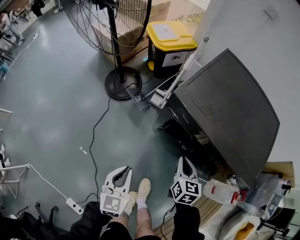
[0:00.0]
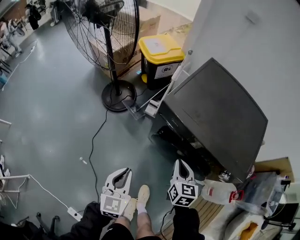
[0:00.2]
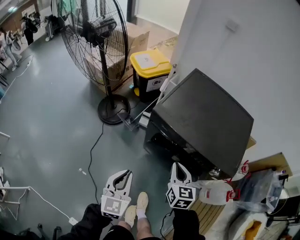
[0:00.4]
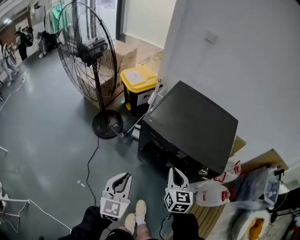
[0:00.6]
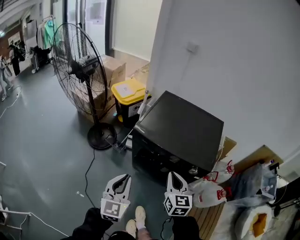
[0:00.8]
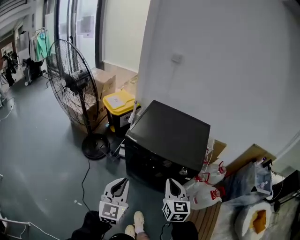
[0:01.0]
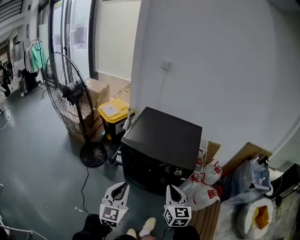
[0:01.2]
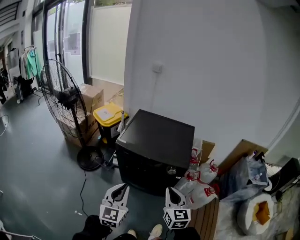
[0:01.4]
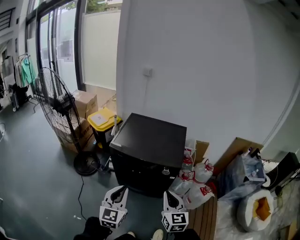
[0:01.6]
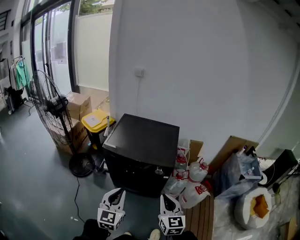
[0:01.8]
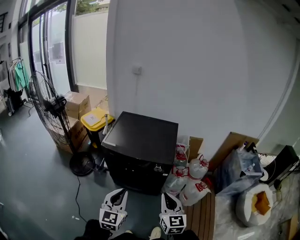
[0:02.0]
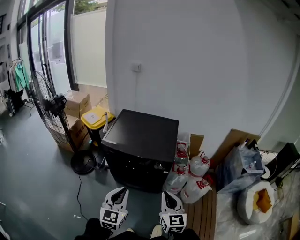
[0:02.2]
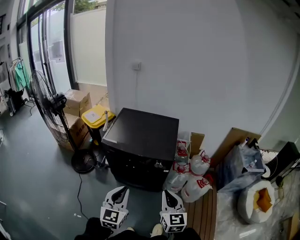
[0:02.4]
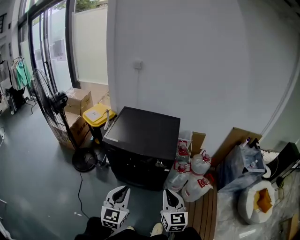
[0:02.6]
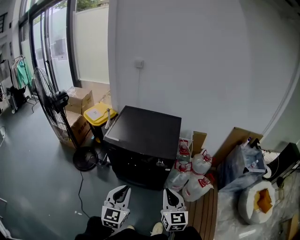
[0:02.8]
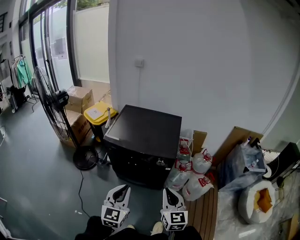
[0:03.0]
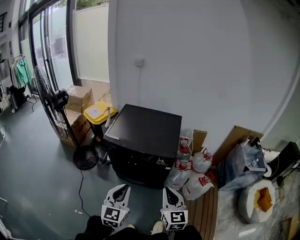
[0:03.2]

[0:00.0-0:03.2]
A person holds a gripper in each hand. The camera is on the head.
0:00.0 to 0:01.6: The right gripper shifts some 50 cm upward, backward and to the right, and swivels approximately 30 degrees. The left gripper travels upward, to the right and backward by approximately 50 cm, and rotates some 30 degrees.
0:01.6 to 0:03.2: The left gripper moves to the right, approximately 5 cm; the right gripper moves roughly 5 cm.

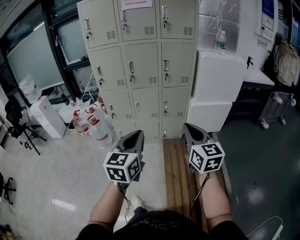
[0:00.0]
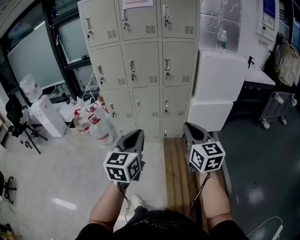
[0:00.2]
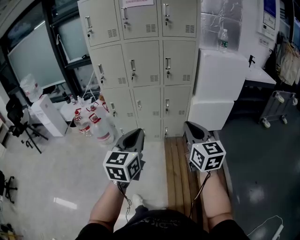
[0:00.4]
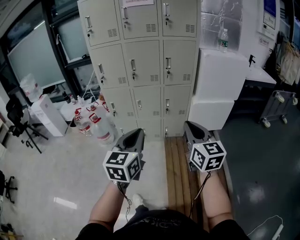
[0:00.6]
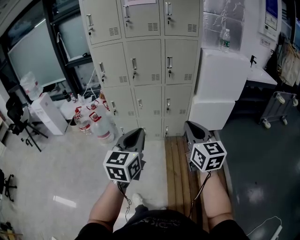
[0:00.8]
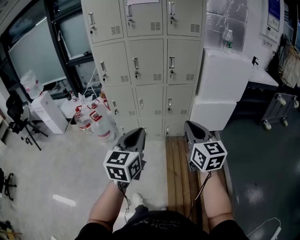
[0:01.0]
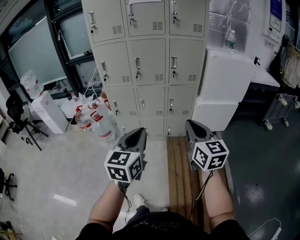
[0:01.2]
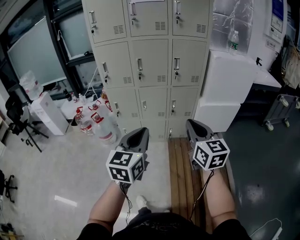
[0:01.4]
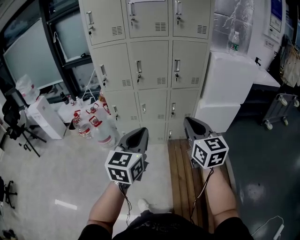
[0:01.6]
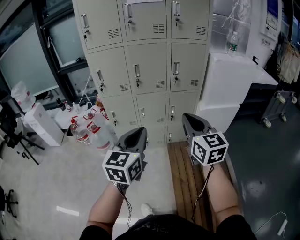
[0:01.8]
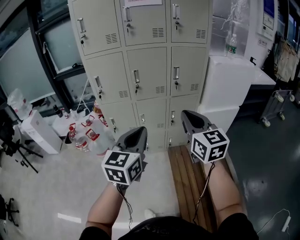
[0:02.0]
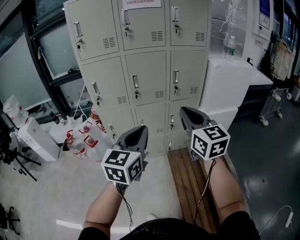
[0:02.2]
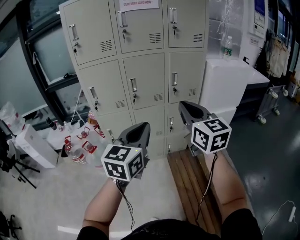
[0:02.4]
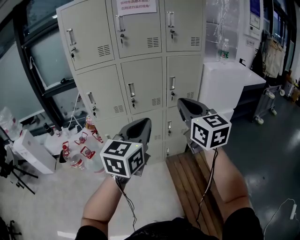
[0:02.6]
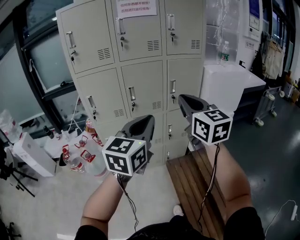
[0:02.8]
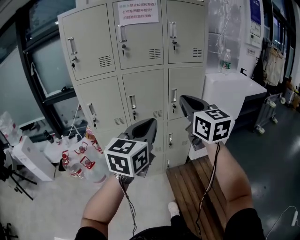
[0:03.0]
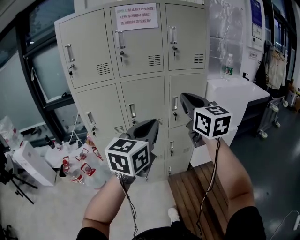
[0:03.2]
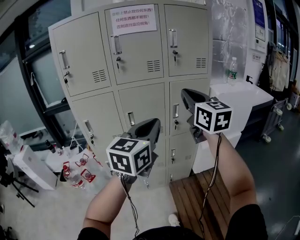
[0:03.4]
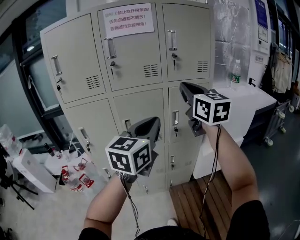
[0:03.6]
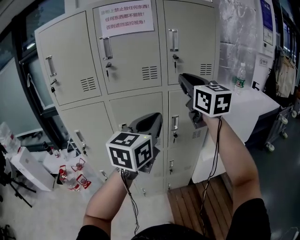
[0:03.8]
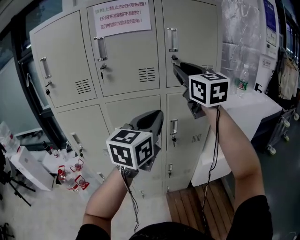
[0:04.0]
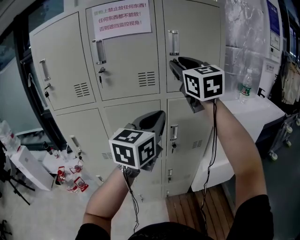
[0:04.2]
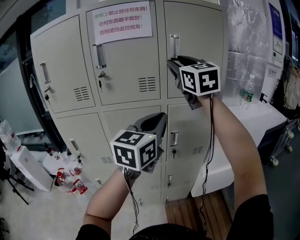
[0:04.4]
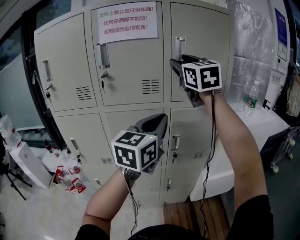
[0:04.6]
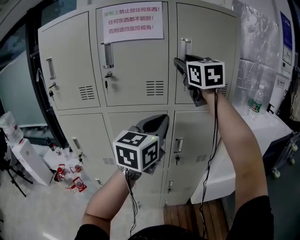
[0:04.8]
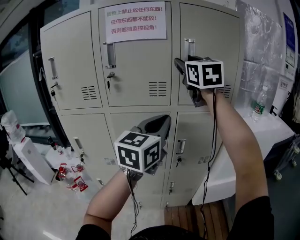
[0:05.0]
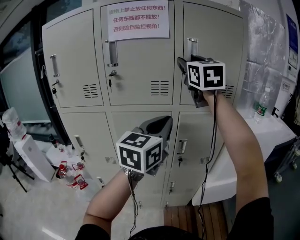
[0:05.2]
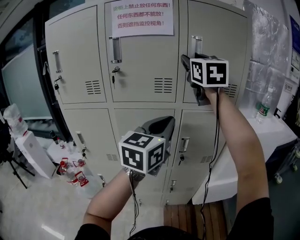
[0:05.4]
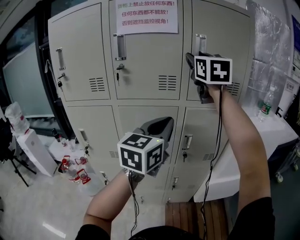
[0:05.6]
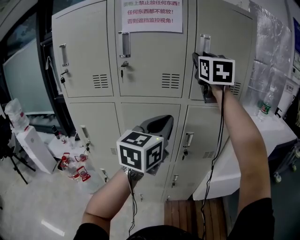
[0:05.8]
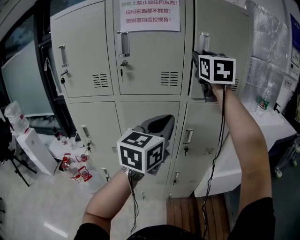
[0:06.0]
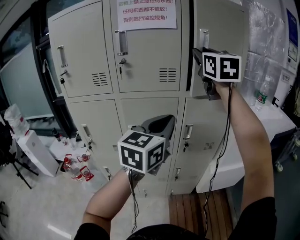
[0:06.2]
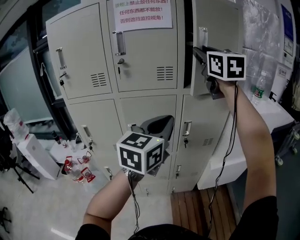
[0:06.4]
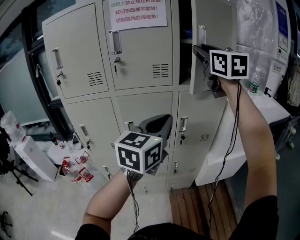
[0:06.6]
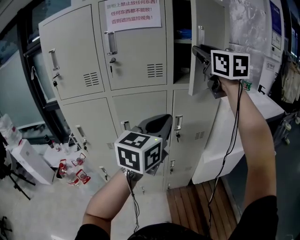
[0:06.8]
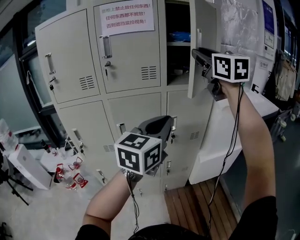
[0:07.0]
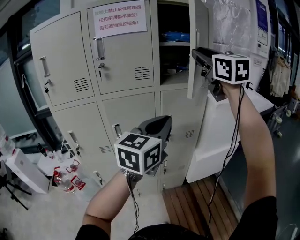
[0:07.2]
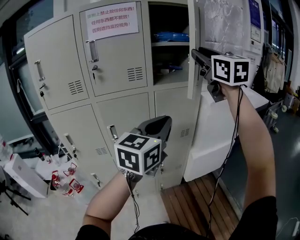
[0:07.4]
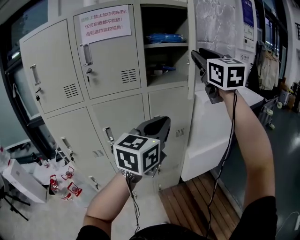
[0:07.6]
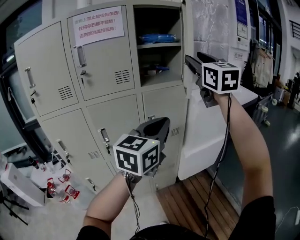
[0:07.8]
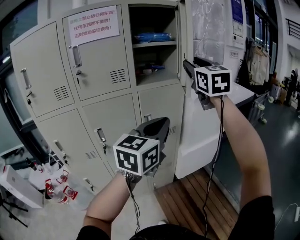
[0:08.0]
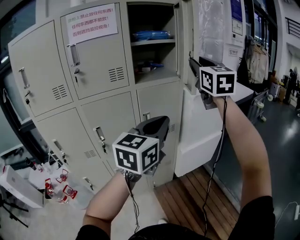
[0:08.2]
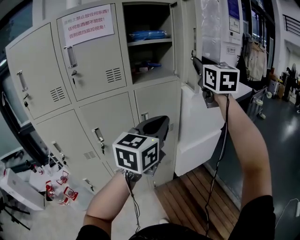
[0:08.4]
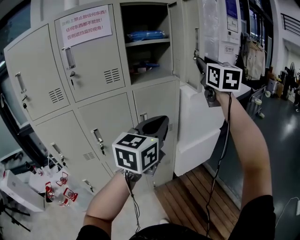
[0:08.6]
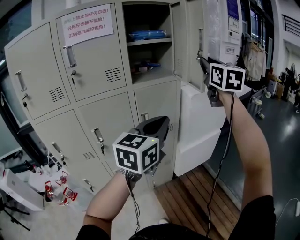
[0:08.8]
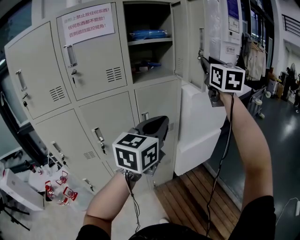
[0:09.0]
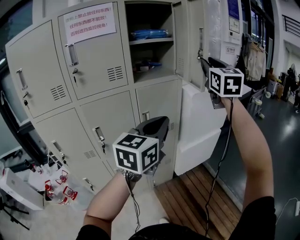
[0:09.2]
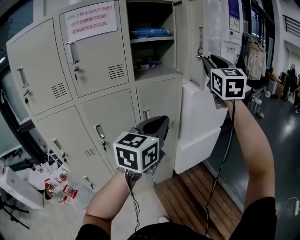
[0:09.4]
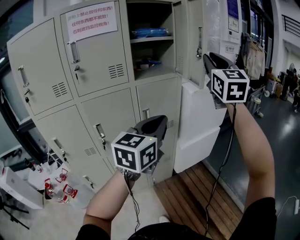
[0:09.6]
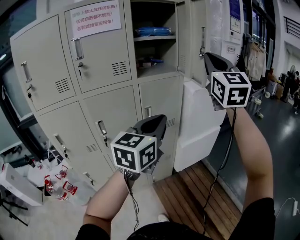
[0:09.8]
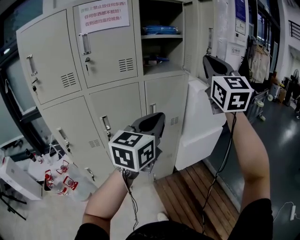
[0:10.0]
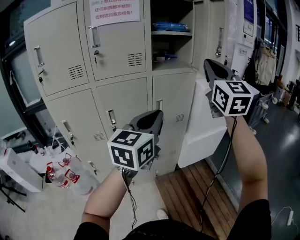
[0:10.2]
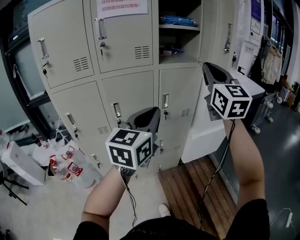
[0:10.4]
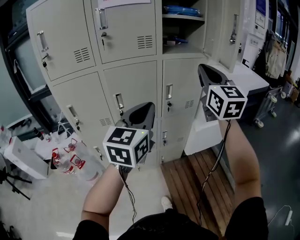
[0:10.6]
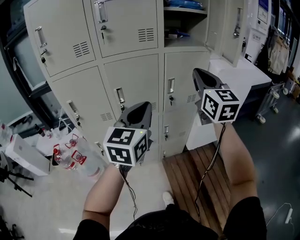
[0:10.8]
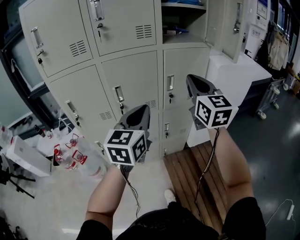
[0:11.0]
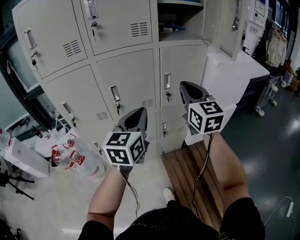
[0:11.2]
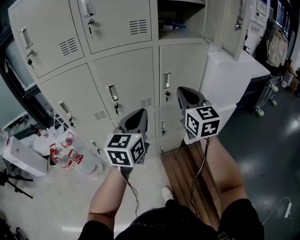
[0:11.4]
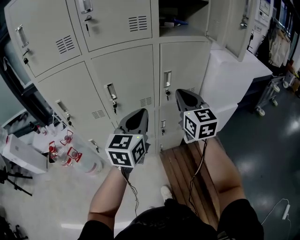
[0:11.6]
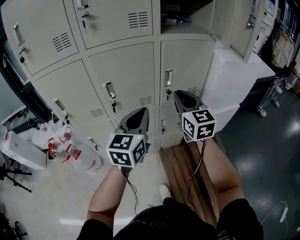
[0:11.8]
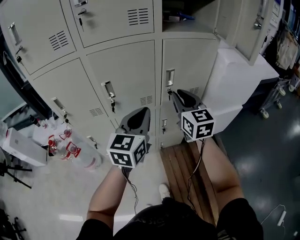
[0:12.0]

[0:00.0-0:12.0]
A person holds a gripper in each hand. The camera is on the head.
0:00.0 to 0:01.6: Both grippers move forward and to the left, approximately 10 cm.
0:01.6 to 0:03.0: The right gripper is displaced forward, upward and to the left by some 25 cm, while the left gripper heads forward and upward, covering approximately 25 cm.
0:03.0 to 0:04.4: The right gripper travels forward and upward by roughly 40 cm, and opens. Meanwhile the left gripper is displaced forward by roughly 30 cm.
0:04.4 to 0:06.0: There are only small adjustments of the grippers.
0:06.0 to 0:07.6: The right gripper is displaced to the right and backward by approximately 20 cm; the left gripper heads to the right and backward, covering approximately 15 cm.
0:07.6 to 0:09.0: The right gripper shifts some 10 cm to the right.
0:09.0 to 0:10.4: The left gripper travels to the left and backward by some 15 cm; the right gripper goes about 20 cm to the left, backward and downward, and closes up.
0:10.4 to 0:12.0: The left gripper heads downward and forward, covering roughly 20 cm, while the right gripper goes some 30 cm downward, and turns by some 20 degrees.

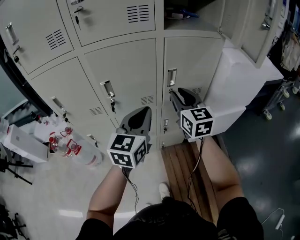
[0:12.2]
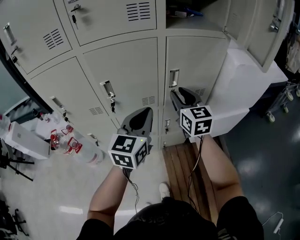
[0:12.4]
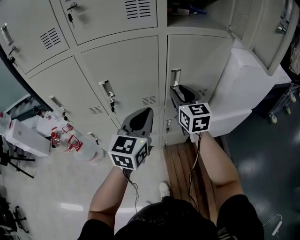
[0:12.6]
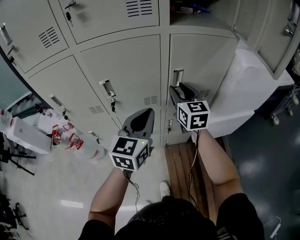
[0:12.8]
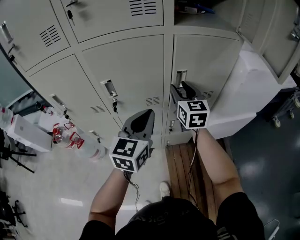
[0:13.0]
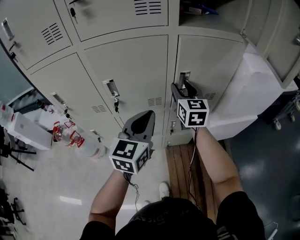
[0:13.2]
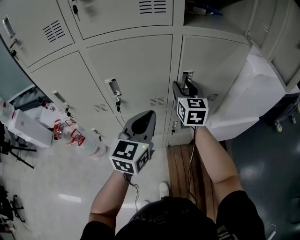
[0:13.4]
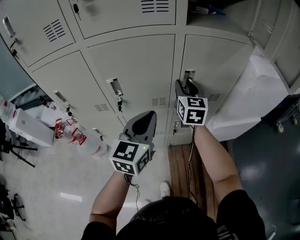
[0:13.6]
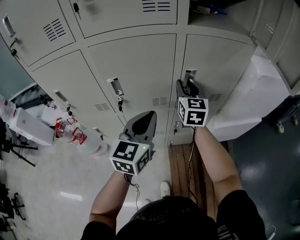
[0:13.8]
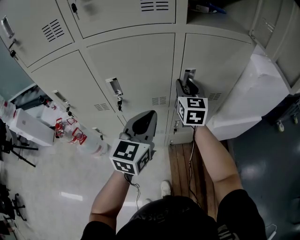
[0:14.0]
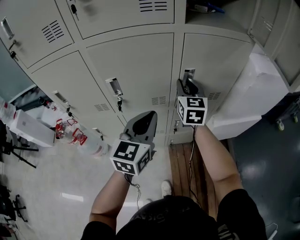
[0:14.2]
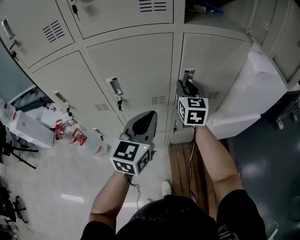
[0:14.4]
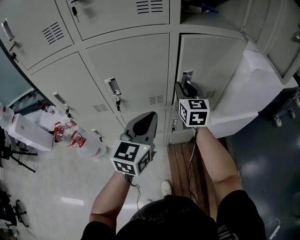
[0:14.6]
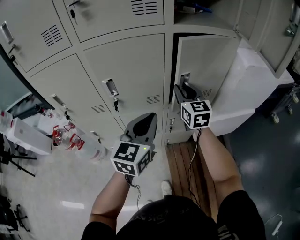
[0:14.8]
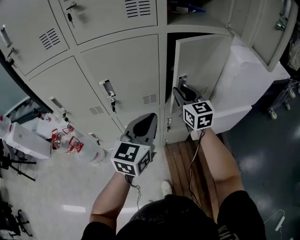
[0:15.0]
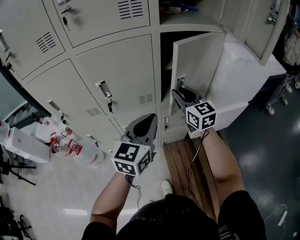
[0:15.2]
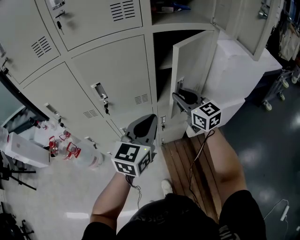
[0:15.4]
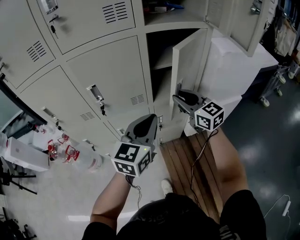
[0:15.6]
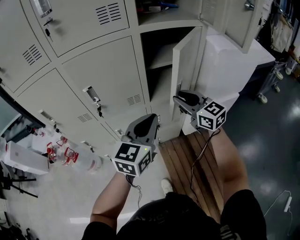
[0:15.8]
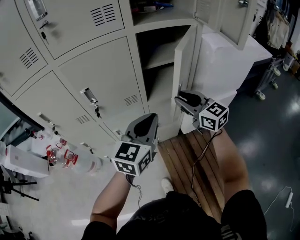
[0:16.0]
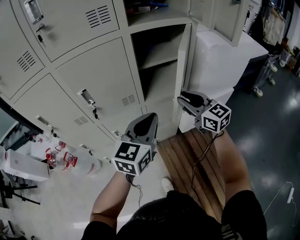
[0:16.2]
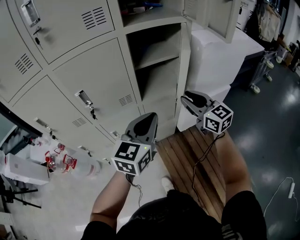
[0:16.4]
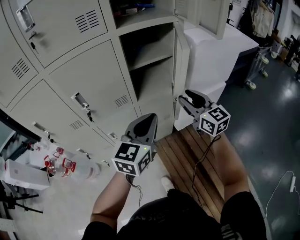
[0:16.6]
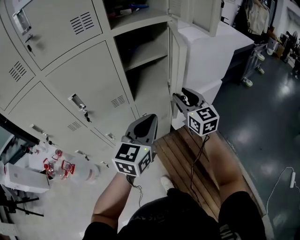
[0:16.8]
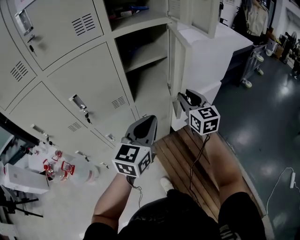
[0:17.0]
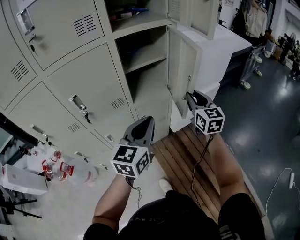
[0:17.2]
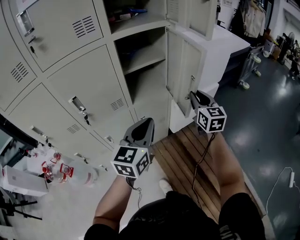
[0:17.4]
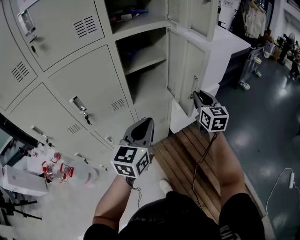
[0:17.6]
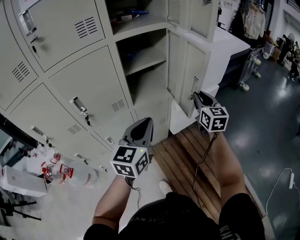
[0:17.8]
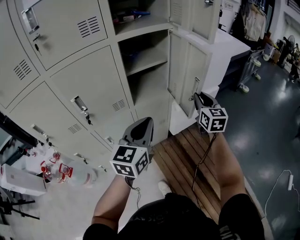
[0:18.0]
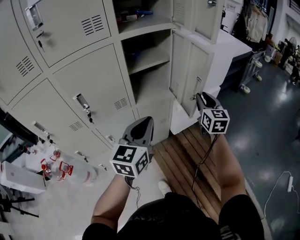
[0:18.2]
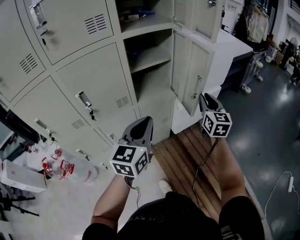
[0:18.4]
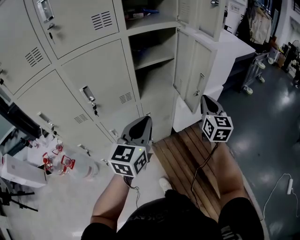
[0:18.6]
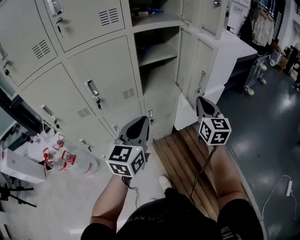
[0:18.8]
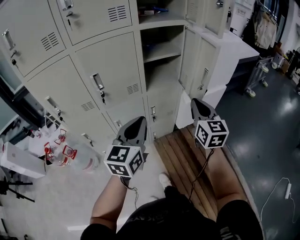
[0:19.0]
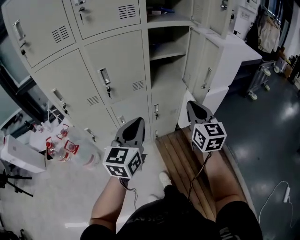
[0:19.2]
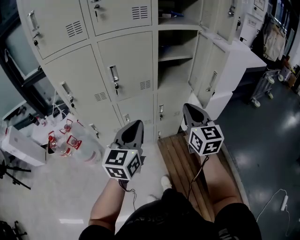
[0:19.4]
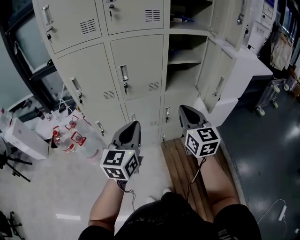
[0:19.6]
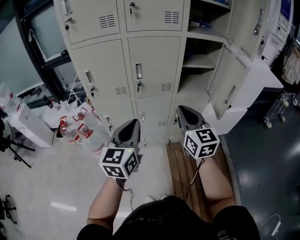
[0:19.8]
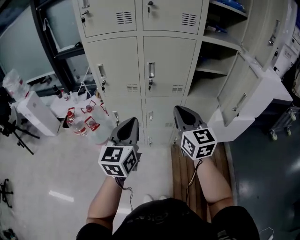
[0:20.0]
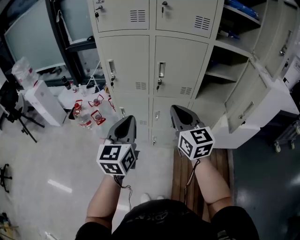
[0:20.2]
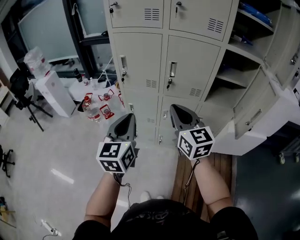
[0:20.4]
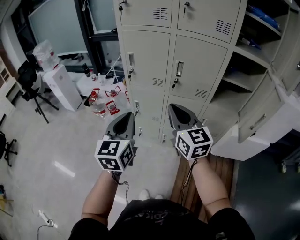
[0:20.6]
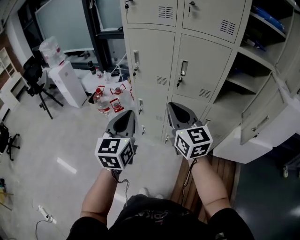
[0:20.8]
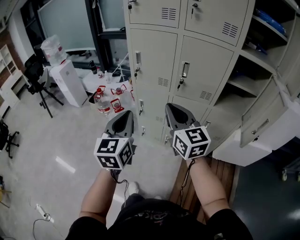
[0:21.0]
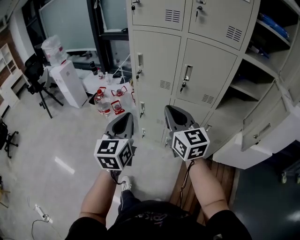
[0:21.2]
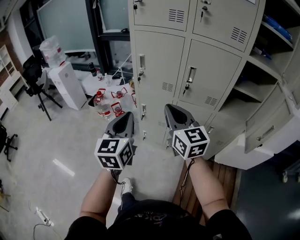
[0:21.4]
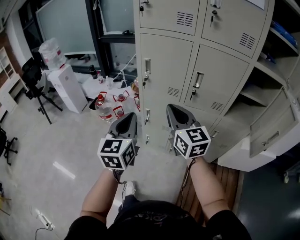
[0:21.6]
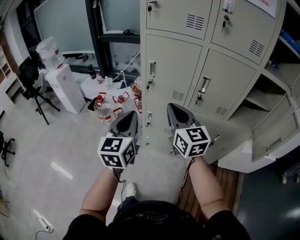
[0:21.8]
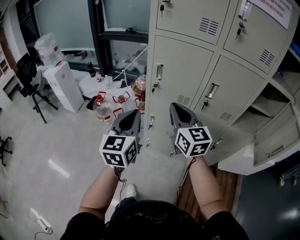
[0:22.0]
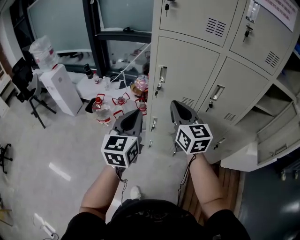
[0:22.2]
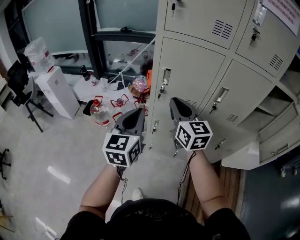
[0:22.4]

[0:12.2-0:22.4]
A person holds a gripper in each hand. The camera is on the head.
0:12.2 to 0:13.6: The left gripper ends up roughly 5 cm from where it was. Meanwhile the right gripper moves forward, some 15 cm.
0:13.6 to 0:15.2: The right gripper moves backward, about 10 cm. The left gripper shifts by some 5 cm.
0:15.2 to 0:16.6: The left gripper heads to the right, covering about 10 cm. Meanwhile the right gripper is displaced to the right and backward by about 15 cm.
0:16.6 to 0:18.0: The right gripper travels to the right by approximately 10 cm, and changes its angle by about 30 degrees.
0:18.0 to 0:19.4: The two grippers go approximately 25 cm backward and to the left.
0:19.4 to 0:21.0: The left gripper changes place by some 20 cm, and swivels about 40 degrees, while the right gripper moves approximately 25 cm, and turns by approximately 40 degrees.
0:21.0 to 0:22.4: Both grippers move forward and to the left, about 30 cm.
